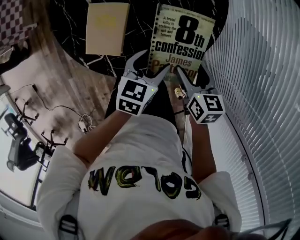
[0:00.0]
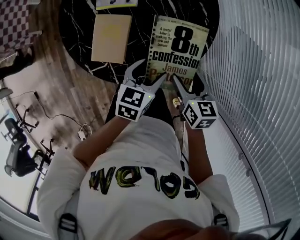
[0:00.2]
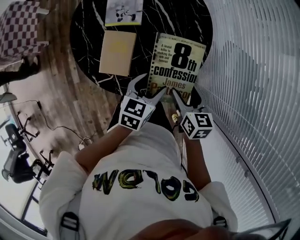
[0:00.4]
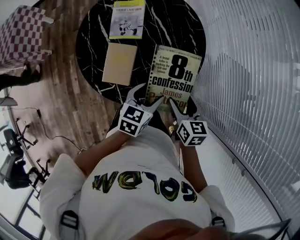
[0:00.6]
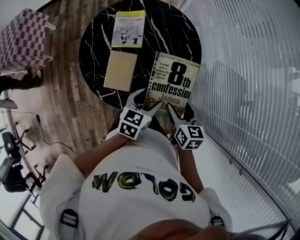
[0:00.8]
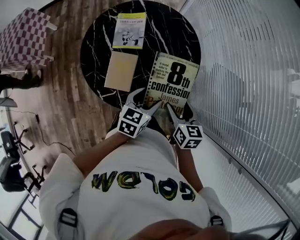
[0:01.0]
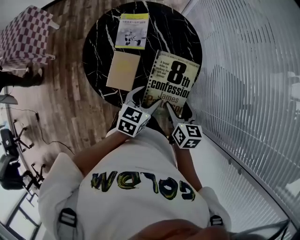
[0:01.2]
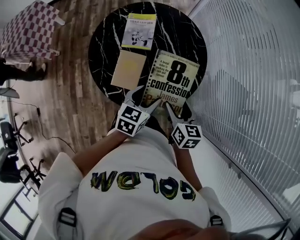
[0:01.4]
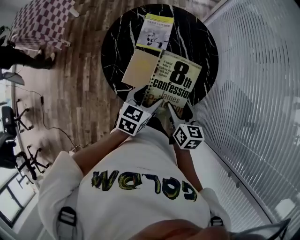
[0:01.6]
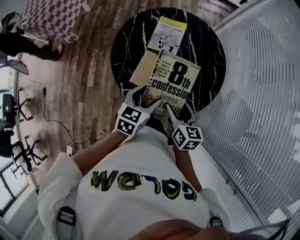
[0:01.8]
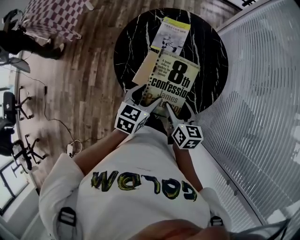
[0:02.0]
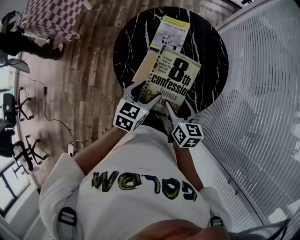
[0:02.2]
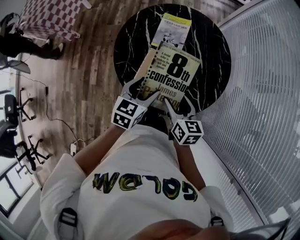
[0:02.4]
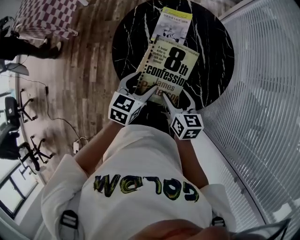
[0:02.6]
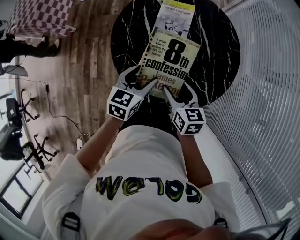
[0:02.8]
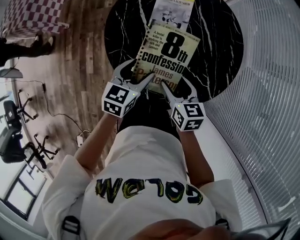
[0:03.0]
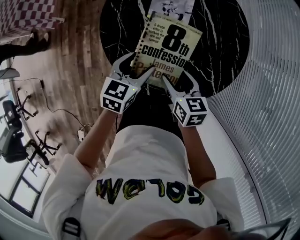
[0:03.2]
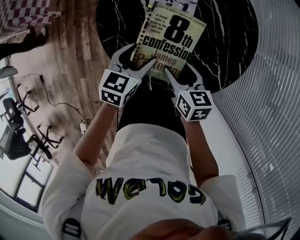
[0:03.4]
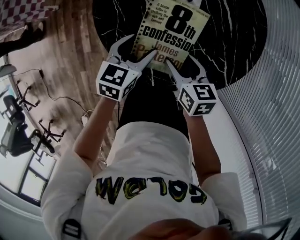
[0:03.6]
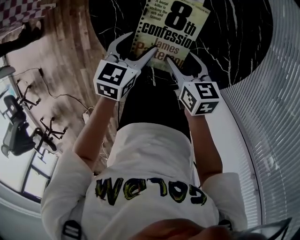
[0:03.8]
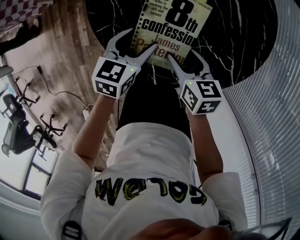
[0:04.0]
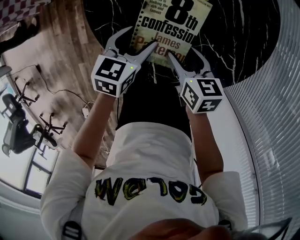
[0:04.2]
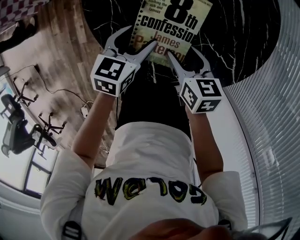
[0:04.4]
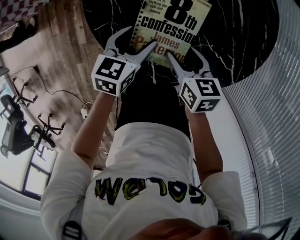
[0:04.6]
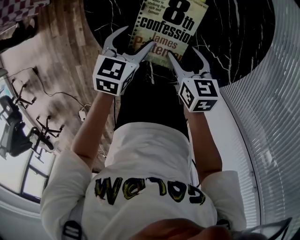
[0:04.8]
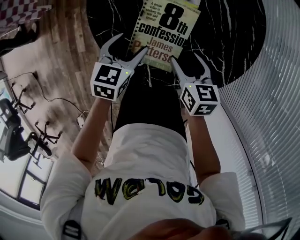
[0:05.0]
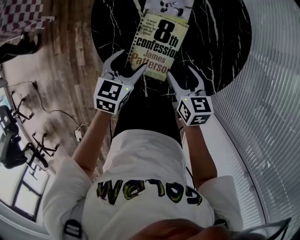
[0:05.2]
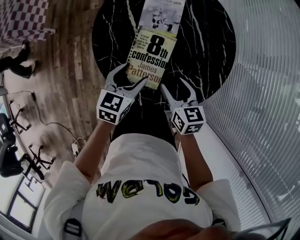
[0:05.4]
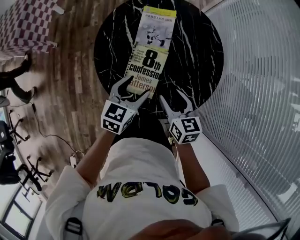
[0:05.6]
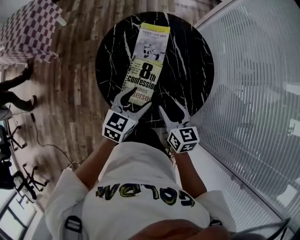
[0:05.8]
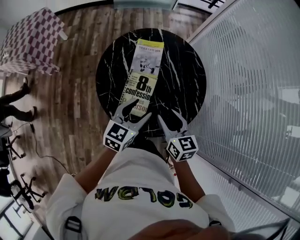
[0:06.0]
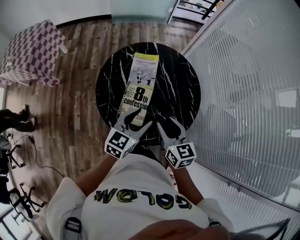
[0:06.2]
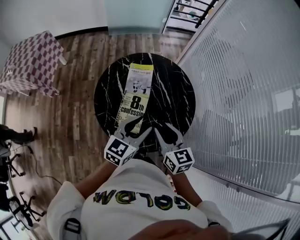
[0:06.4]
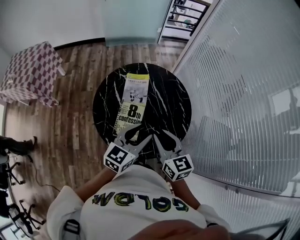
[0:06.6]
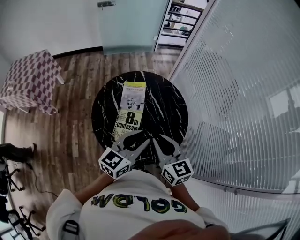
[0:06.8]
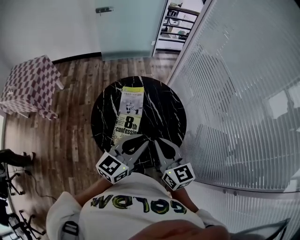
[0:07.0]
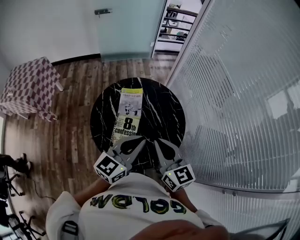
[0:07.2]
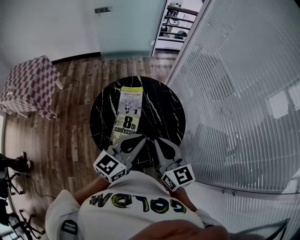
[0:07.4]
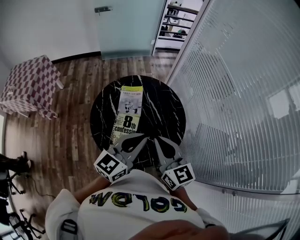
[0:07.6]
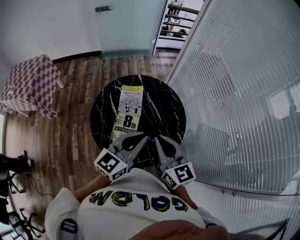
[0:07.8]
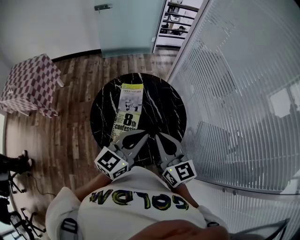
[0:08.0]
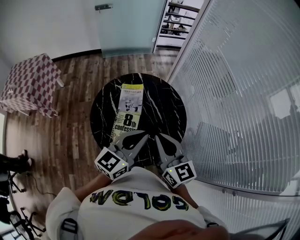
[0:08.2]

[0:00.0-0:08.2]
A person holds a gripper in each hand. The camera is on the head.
0:00.0 to 0:01.6: The grippers both shift to the left and upward by roughly 10 cm.
0:01.6 to 0:03.2: Both grippers travel together to the left and downward, roughly 15 cm.
0:03.2 to 0:05.0: The left gripper heads downward, covering about 5 cm. Meanwhile the right gripper ends up roughly 5 cm from where it was.
0:05.0 to 0:06.6: The left gripper goes approximately 35 cm upward and to the right, tips its fingers upward by about 30 degrees, and closes; the right gripper travels upward by approximately 30 cm, rotates approximately 30 degrees, and closes up.
0:06.6 to 0:08.2: The two grippers go about 10 cm upward. The left gripper closes its fingers.

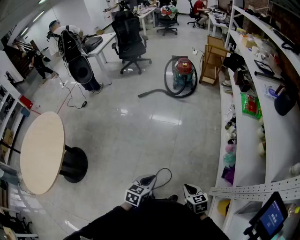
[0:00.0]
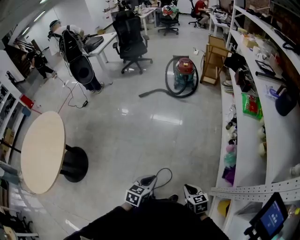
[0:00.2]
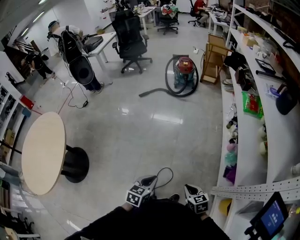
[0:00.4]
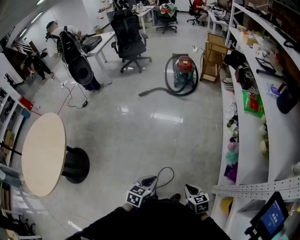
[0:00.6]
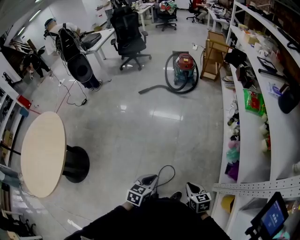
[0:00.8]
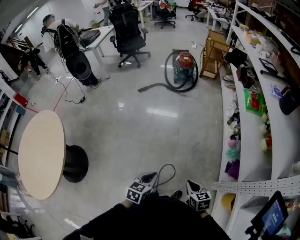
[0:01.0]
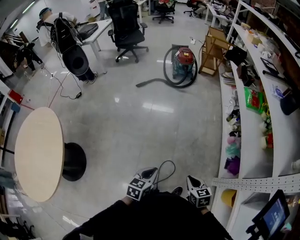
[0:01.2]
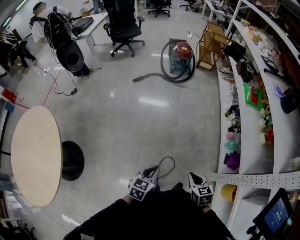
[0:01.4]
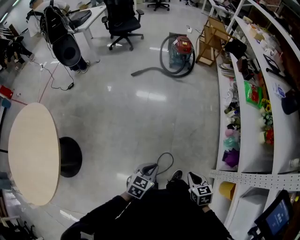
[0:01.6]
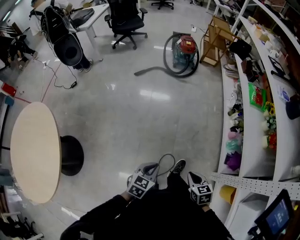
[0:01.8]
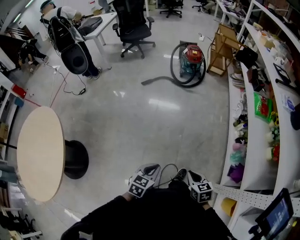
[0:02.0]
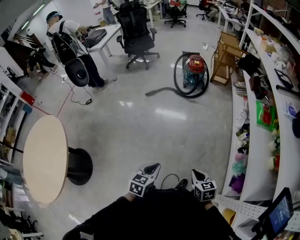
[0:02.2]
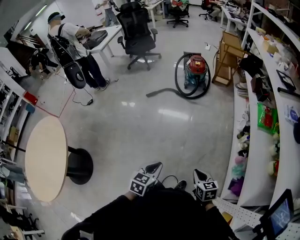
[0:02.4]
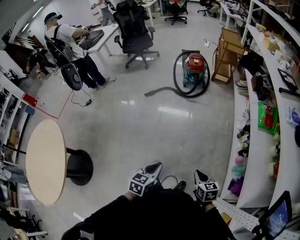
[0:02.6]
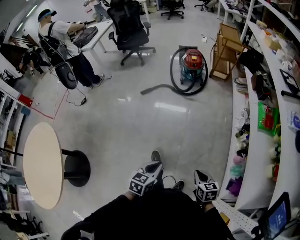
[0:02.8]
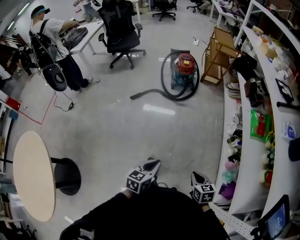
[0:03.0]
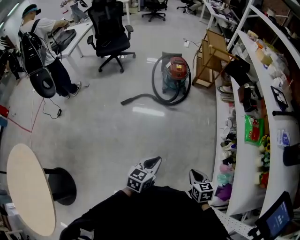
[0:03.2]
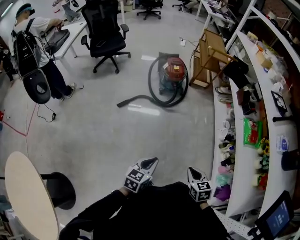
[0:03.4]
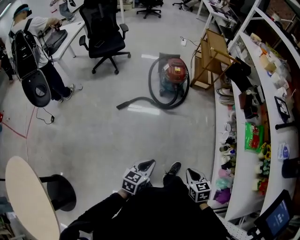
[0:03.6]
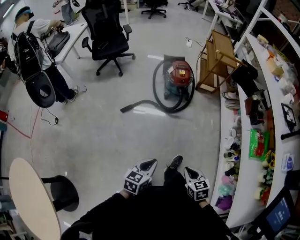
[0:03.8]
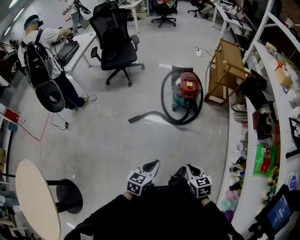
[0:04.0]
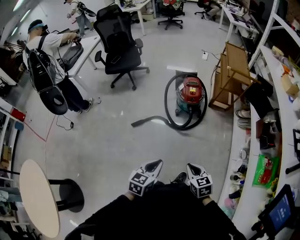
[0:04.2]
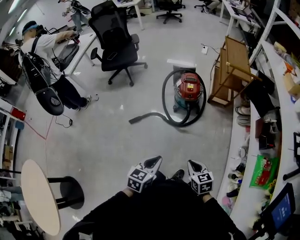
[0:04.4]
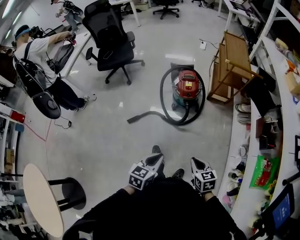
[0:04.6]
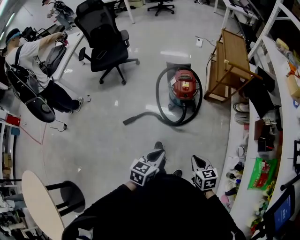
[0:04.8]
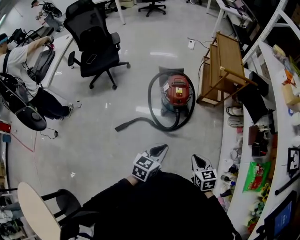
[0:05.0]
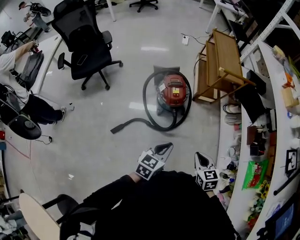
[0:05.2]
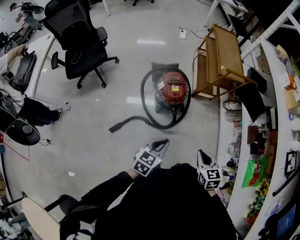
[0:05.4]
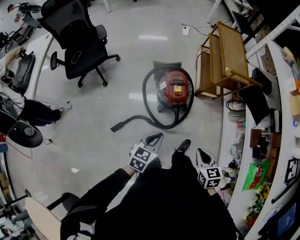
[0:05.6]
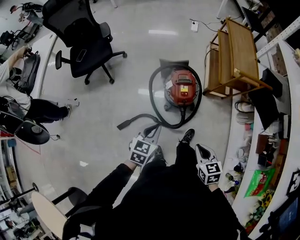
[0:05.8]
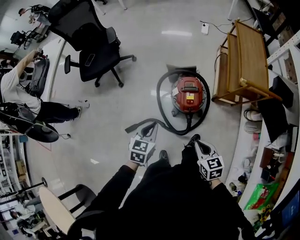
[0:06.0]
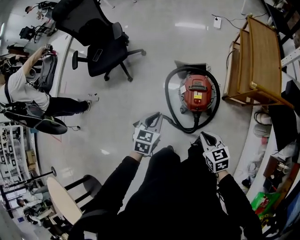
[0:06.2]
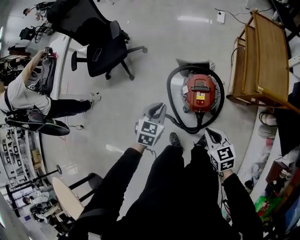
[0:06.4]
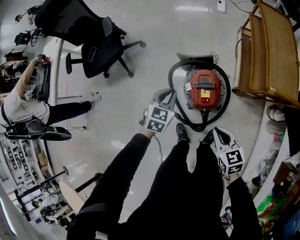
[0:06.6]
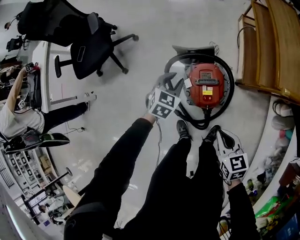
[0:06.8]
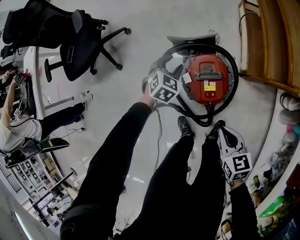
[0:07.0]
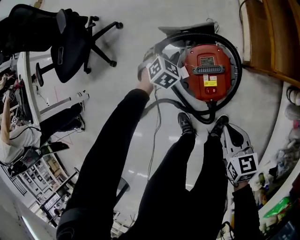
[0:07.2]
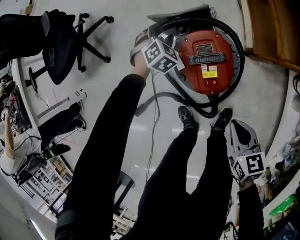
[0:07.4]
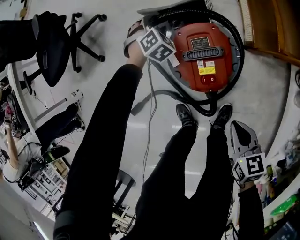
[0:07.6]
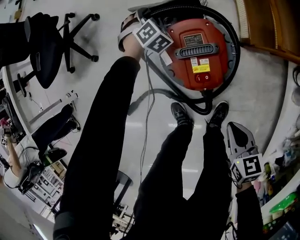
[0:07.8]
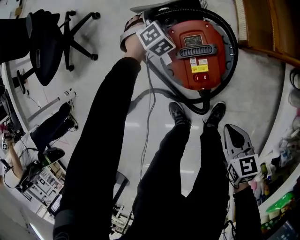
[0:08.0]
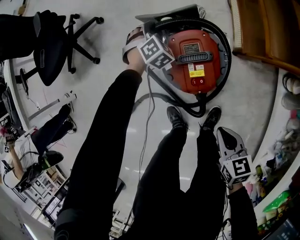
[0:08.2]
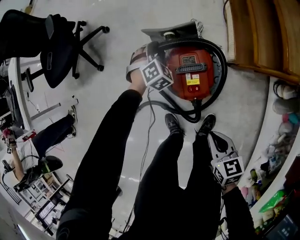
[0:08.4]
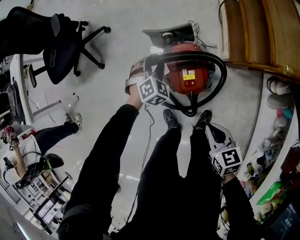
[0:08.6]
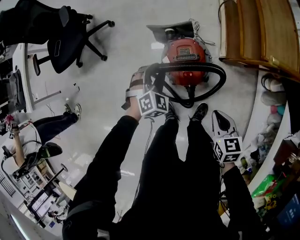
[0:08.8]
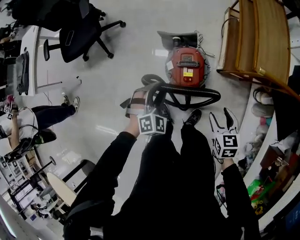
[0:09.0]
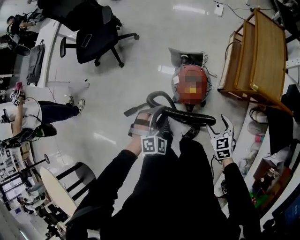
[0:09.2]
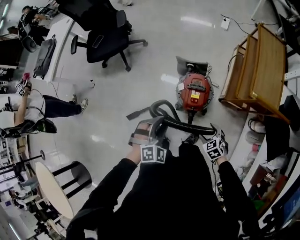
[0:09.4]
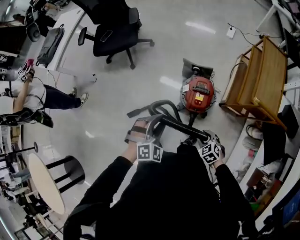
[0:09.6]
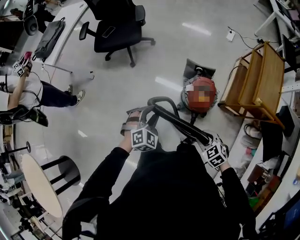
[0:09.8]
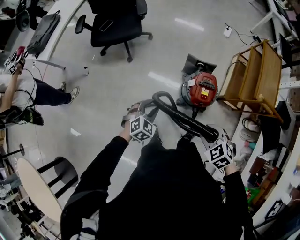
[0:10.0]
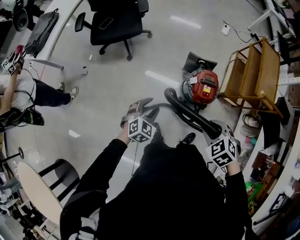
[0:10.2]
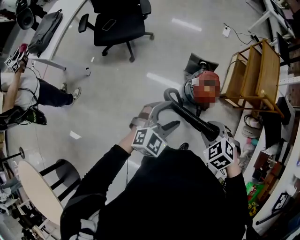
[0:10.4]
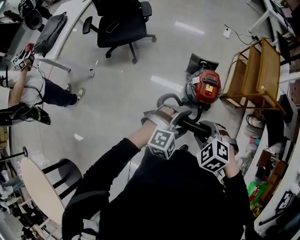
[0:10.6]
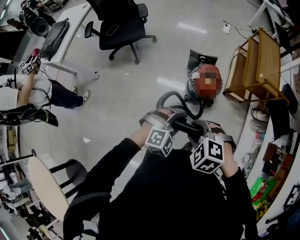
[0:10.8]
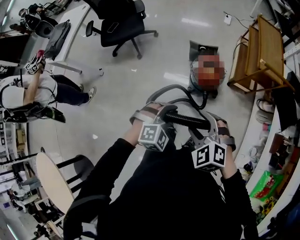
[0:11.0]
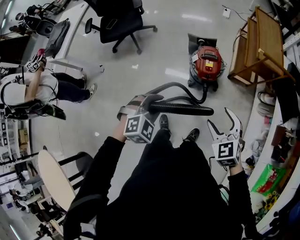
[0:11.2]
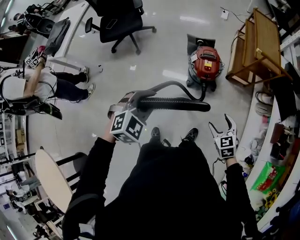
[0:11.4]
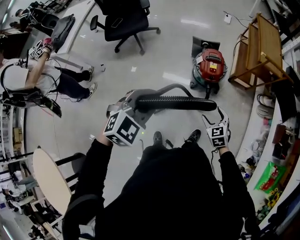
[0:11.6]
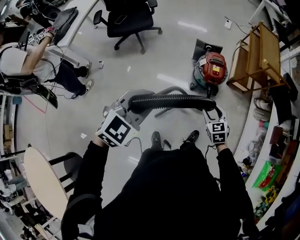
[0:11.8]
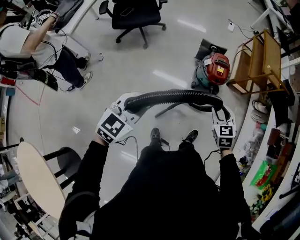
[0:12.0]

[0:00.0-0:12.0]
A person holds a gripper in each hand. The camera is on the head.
0:00.0 to 0:01.6: The grippers both shift to the left and forward by about 15 cm.
0:01.6 to 0:03.0: The grippers both shift forward by approximately 35 cm.
0:03.0 to 0:04.4: Both grippers are carried forward, about 50 cm.
0:04.4 to 0:06.0: The two grippers travel together, some 50 cm.
0:06.0 to 0:07.6: The right gripper is displaced downward by about 35 cm; the left gripper heads downward and forward, covering approximately 60 cm, rotates around the line of its fingers by about 50 degrees, clockwise from behind, and opens.
0:07.6 to 0:09.0: The right gripper heads upward, covering some 20 cm, and opens. Meanwhile the left gripper goes approximately 50 cm upward and backward.
0:09.0 to 0:10.4: The left gripper goes up and down, some 20 cm each way, reversing 2 times, swivels approximately 30 degrees, and opens up; the right gripper moves some 40 cm, and twists roughly 50 degrees counterclockwise, seen from behind.
0:10.4 to 0:12.0: The right gripper moves backward, roughly 15 cm, goes to the right and returns, roughly 20 cm each way, turns by roughly 40 degrees, and opens and closes again. Meanwhile the left gripper moves backward and to the left, roughly 30 cm, and closes up.

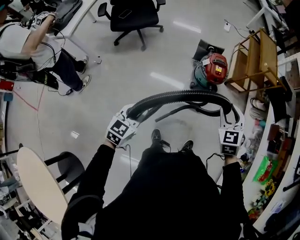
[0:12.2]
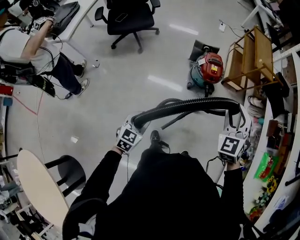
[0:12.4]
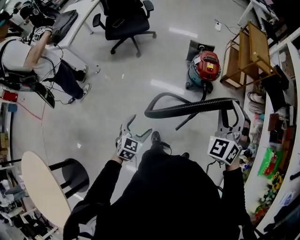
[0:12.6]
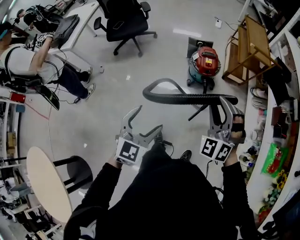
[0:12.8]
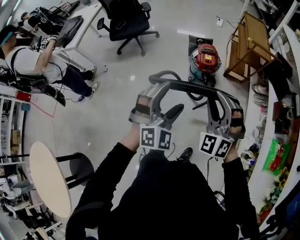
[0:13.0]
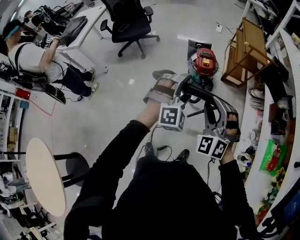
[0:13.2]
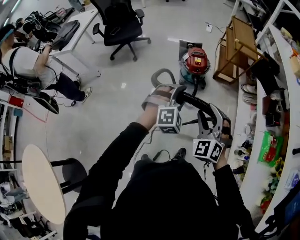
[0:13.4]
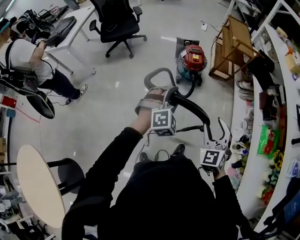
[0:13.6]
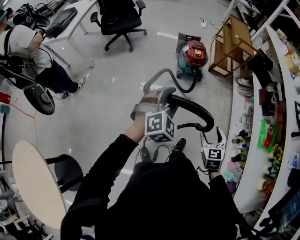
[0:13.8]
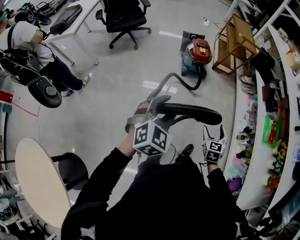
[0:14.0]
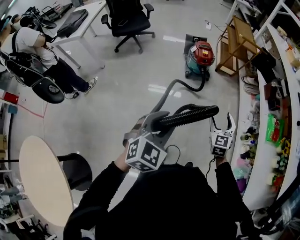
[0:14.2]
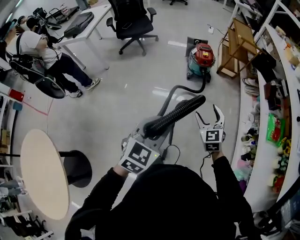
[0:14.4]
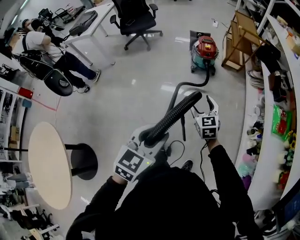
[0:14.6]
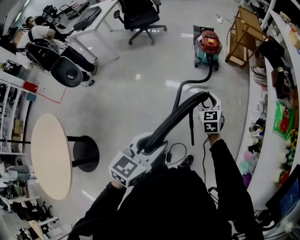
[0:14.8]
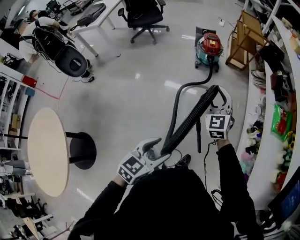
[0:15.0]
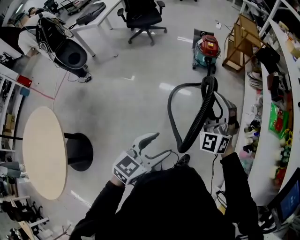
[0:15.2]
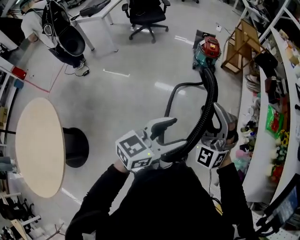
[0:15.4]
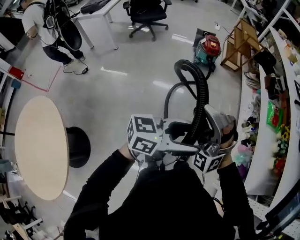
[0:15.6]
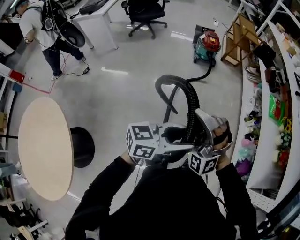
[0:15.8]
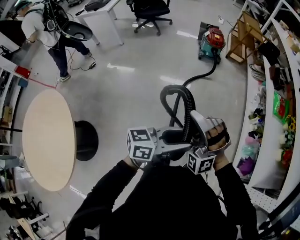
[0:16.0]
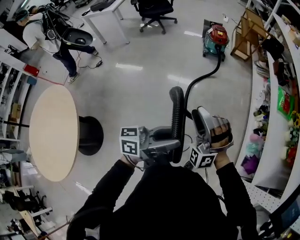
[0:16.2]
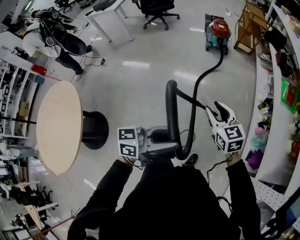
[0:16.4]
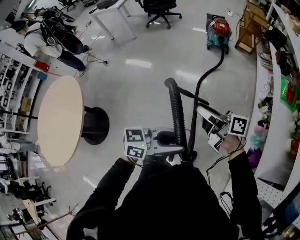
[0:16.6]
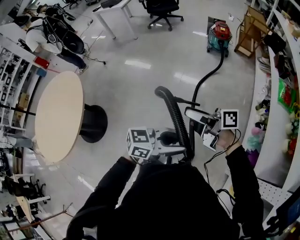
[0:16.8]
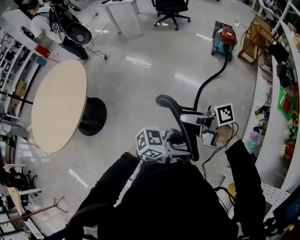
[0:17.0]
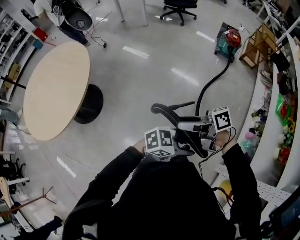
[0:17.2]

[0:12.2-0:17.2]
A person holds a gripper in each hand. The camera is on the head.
0:12.2 to 0:13.8: The left gripper goes approximately 30 cm to the right, backward and upward, twists about 40 degrees clockwise, seen from behind, and opens up, while the right gripper is displaced backward by about 40 cm, and opens.
0:13.8 to 0:15.6: The pair of grippers is taken backward, approximately 50 cm. The right gripper goes roughly 25 cm upward, and rolls counterclockwise, seen from behind, by about 70 degrees. Meanwhile the left gripper angles its fingers upward, by some 30 degrees.
0:15.6 to 0:17.2: The right gripper moves approximately 40 cm, and changes its angle by approximately 160 degrees; the left gripper moves some 40 cm, rotates some 20 degrees, and closes.
